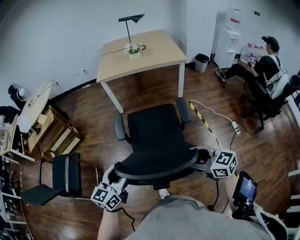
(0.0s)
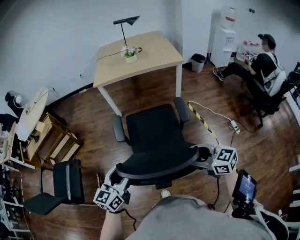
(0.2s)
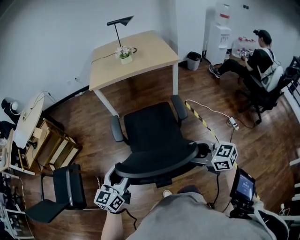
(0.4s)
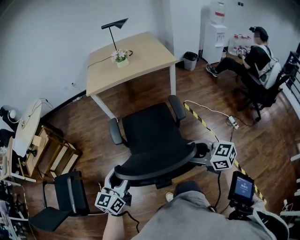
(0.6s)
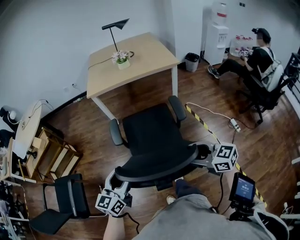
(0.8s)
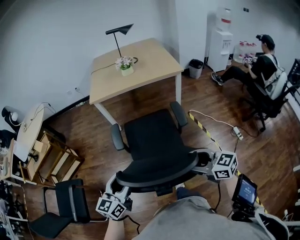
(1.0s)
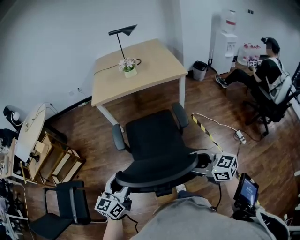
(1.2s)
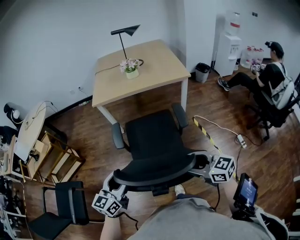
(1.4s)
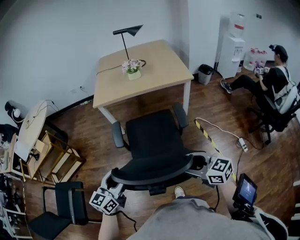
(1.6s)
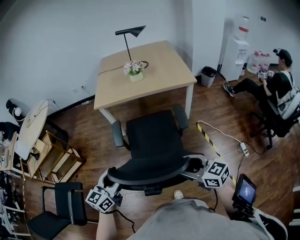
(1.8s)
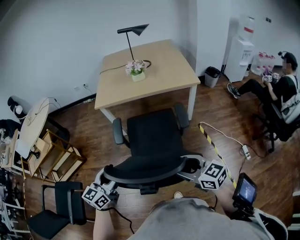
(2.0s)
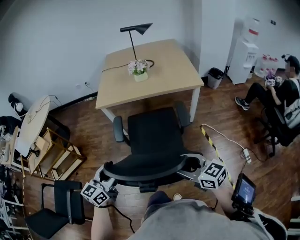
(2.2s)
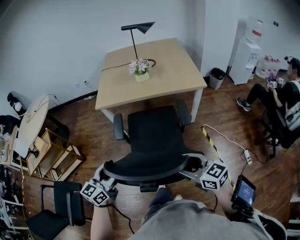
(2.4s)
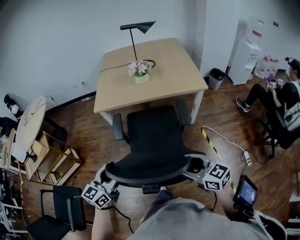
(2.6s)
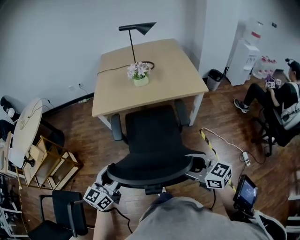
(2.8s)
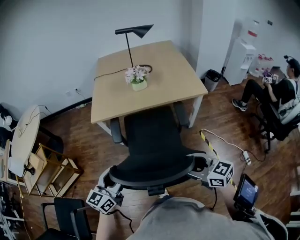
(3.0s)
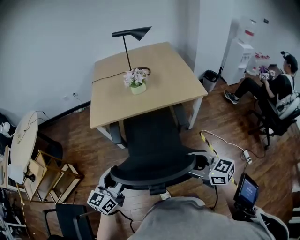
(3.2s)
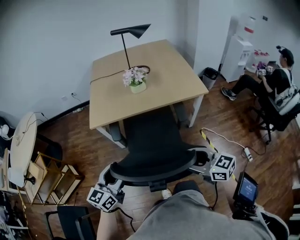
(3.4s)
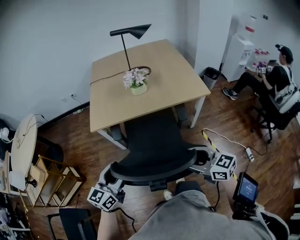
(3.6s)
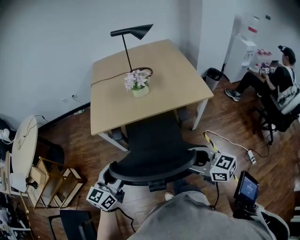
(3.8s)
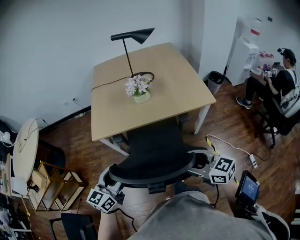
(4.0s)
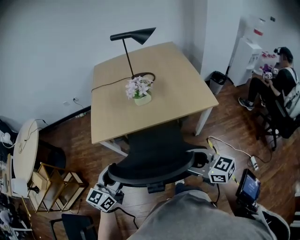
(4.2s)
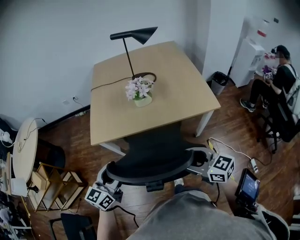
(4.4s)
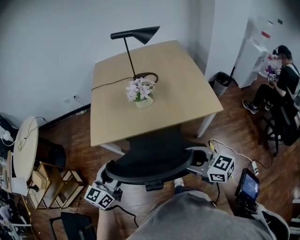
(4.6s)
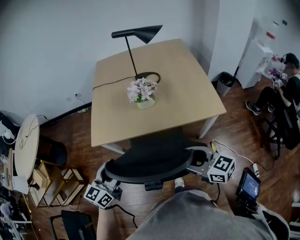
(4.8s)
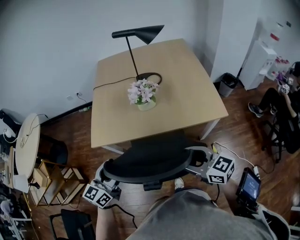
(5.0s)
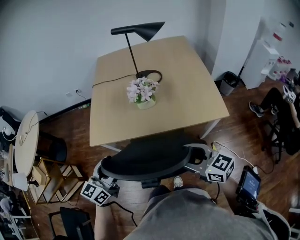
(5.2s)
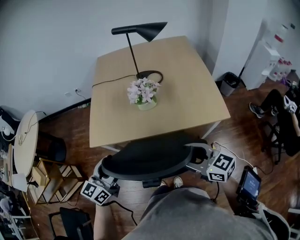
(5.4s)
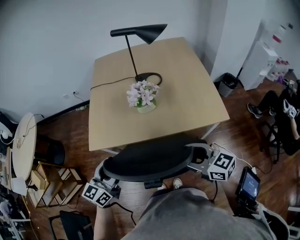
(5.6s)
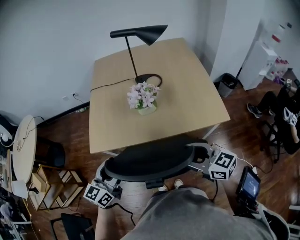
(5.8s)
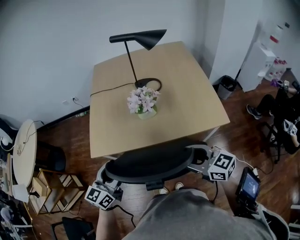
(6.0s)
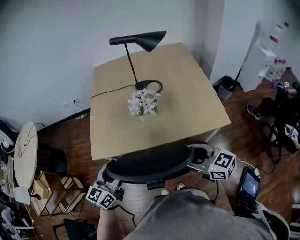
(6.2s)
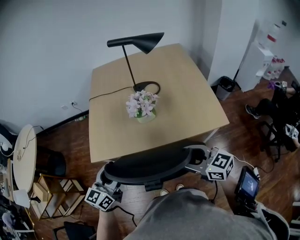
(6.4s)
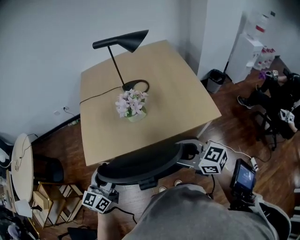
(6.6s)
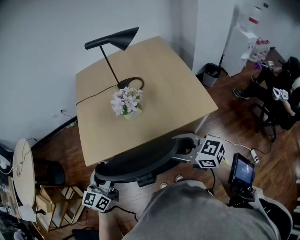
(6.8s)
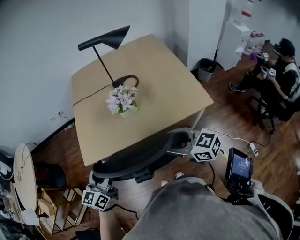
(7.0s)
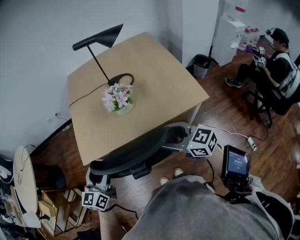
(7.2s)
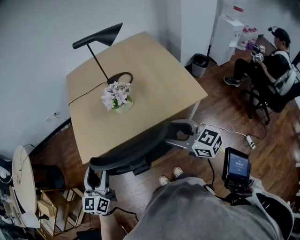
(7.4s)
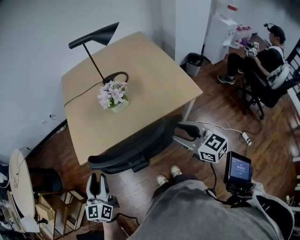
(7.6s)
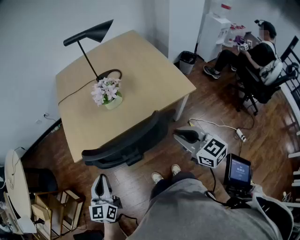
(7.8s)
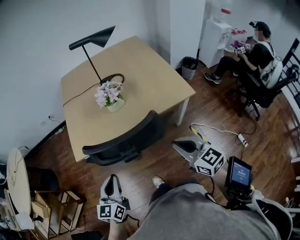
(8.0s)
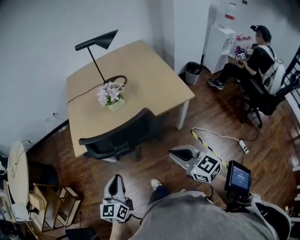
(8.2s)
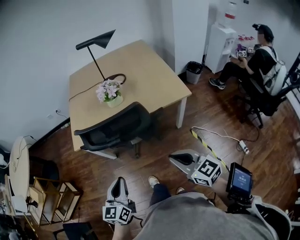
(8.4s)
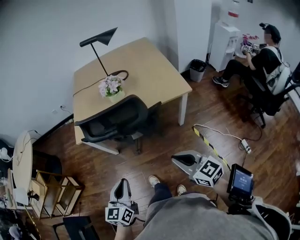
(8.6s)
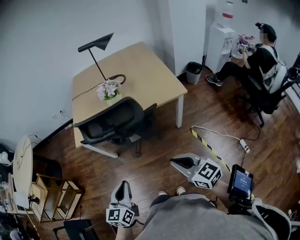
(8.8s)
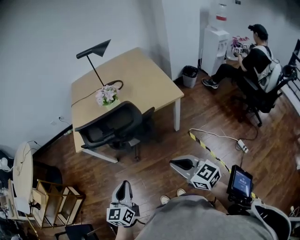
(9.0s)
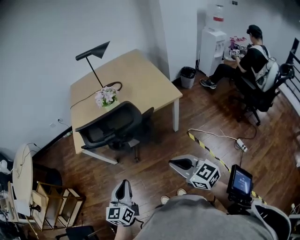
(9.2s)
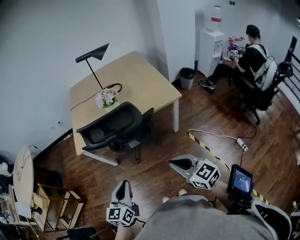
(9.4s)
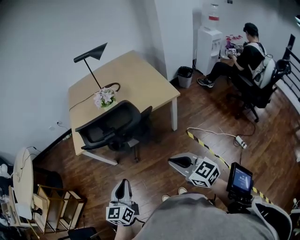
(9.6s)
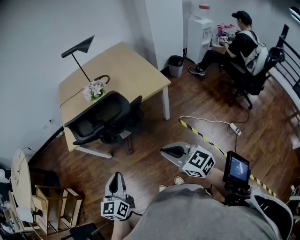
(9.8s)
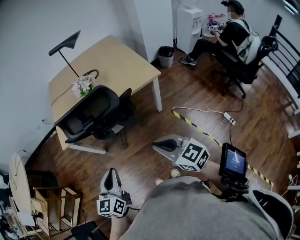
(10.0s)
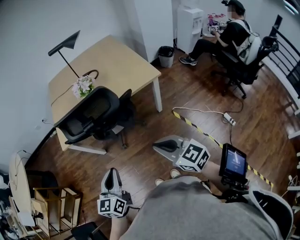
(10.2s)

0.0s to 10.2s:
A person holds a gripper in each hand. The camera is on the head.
0.0s to 1.4s: Both grippers travel together forward, approximately 20 cm.
1.4s to 3.0s: Both grippers travel together forward, approximately 25 cm.
3.0s to 4.4s: The grippers both shift forward by approximately 20 cm.
4.4s to 5.8s: Both grippers travel together forward, approximately 10 cm.
5.8s to 7.2s: The grippers make only small movements.
7.2s to 8.8s: Both grippers move backward, roughly 30 cm. The left gripper closes. The right gripper closes.
8.8s to 10.2s: The grippers make only small movements.

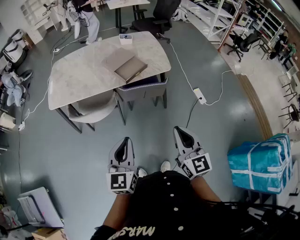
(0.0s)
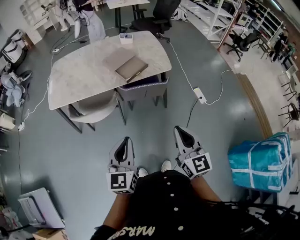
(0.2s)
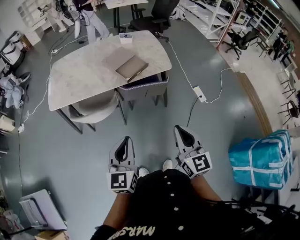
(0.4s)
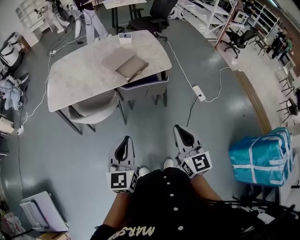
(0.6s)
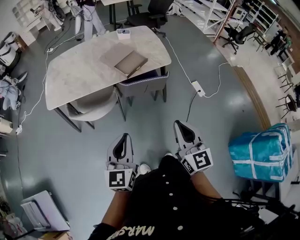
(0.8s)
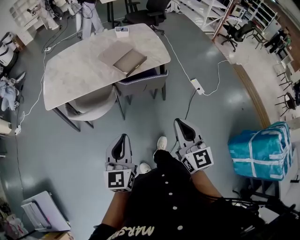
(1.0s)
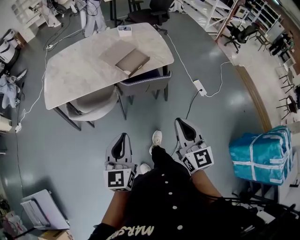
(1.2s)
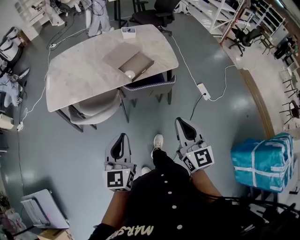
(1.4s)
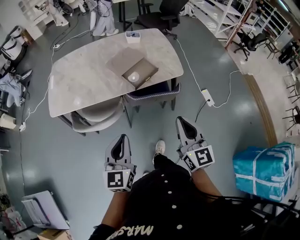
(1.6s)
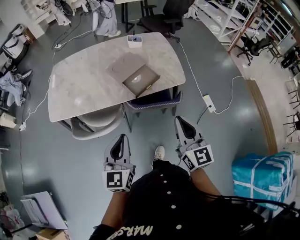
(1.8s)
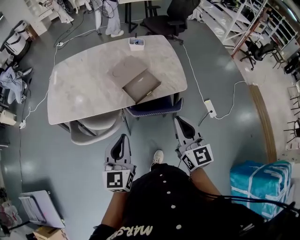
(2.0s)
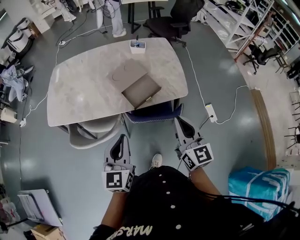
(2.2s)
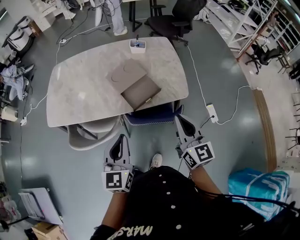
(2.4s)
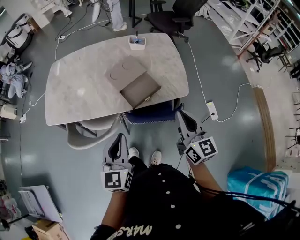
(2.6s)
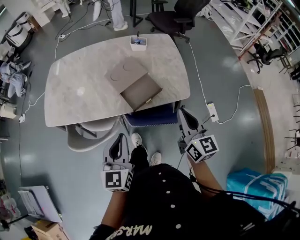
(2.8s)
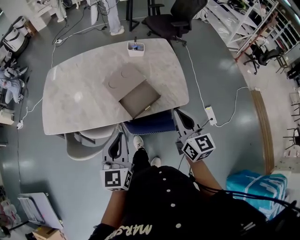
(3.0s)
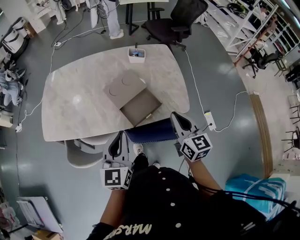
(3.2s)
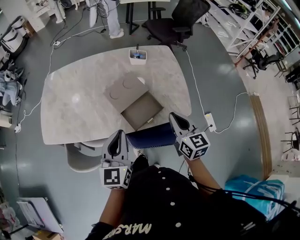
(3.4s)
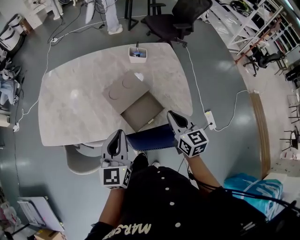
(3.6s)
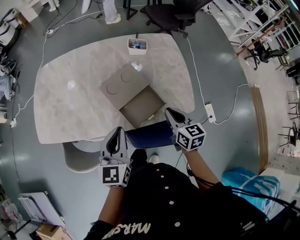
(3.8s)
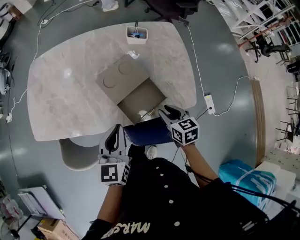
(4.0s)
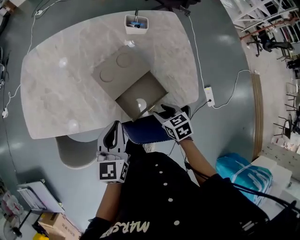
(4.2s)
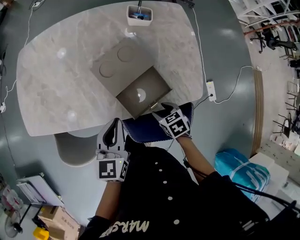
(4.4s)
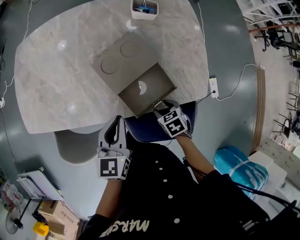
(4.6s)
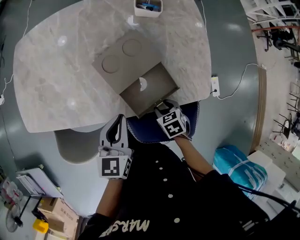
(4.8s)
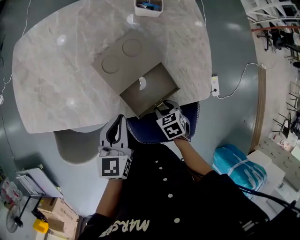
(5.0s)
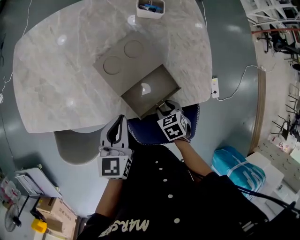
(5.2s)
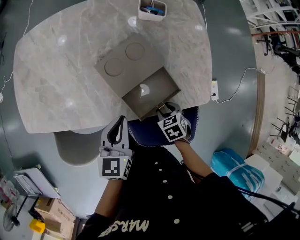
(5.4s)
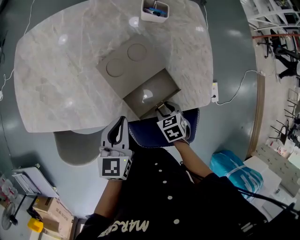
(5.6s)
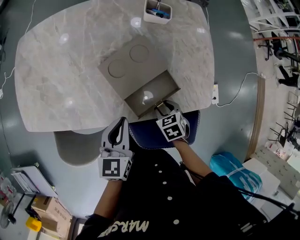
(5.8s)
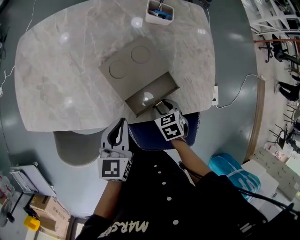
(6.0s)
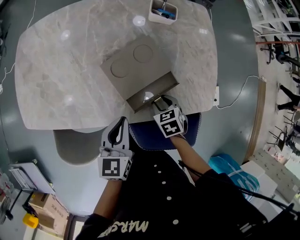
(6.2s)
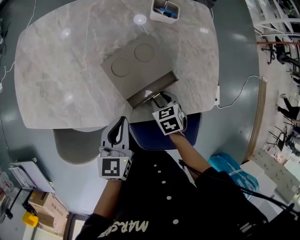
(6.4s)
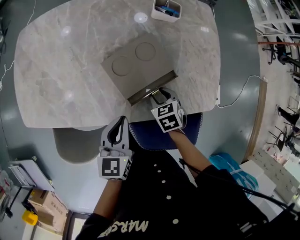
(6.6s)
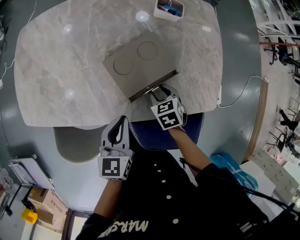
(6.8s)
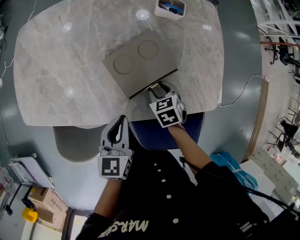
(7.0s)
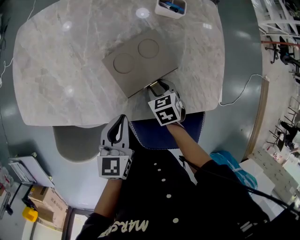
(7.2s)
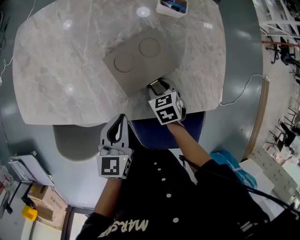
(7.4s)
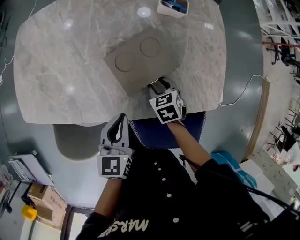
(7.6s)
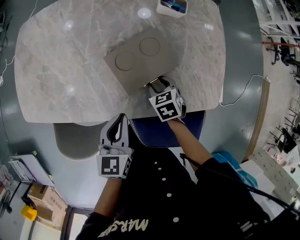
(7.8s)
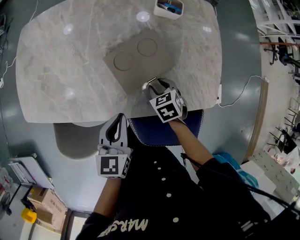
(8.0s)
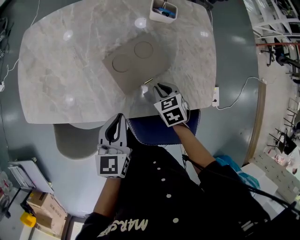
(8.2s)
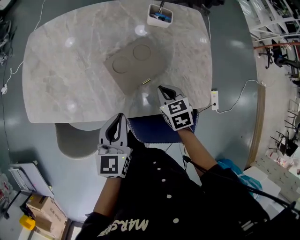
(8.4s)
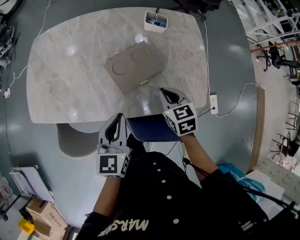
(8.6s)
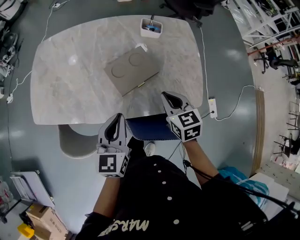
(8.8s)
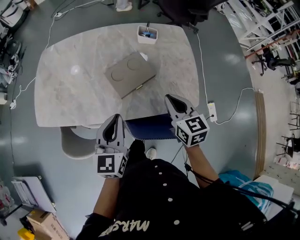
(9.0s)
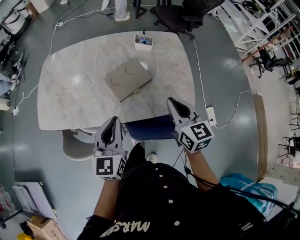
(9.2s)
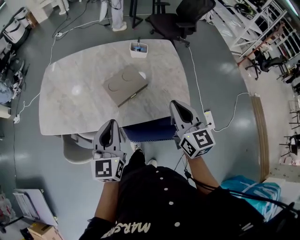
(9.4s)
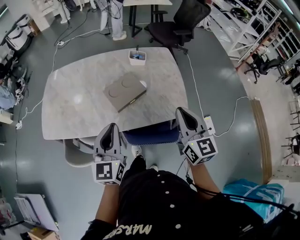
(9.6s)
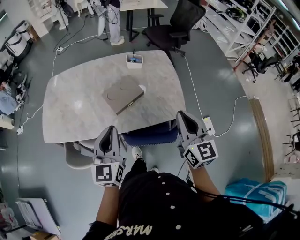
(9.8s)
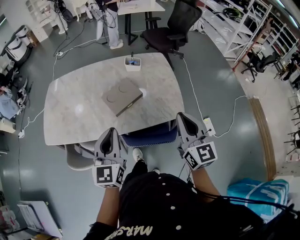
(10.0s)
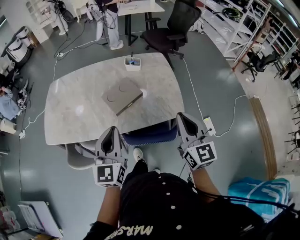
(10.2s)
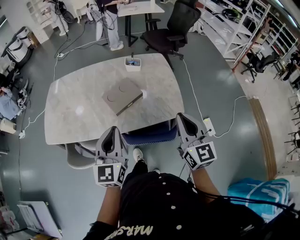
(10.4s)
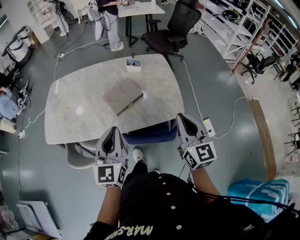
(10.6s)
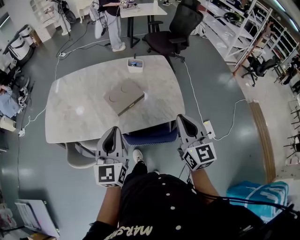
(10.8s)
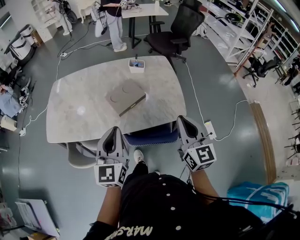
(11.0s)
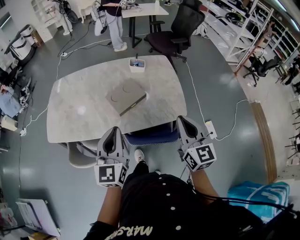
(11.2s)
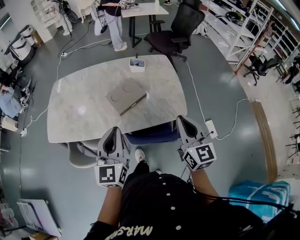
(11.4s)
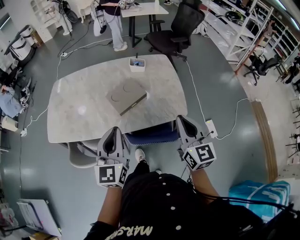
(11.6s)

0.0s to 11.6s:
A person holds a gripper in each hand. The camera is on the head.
0.0s to 1.4s: The left gripper shifts approximately 10 cm forward and to the left, while the right gripper moves forward, about 10 cm.
1.4s to 2.8s: The grippers both shift forward by roughly 25 cm.
2.8s to 4.4s: The right gripper travels downward and forward by about 35 cm, points its fingers about 60 degrees further downward, and opens up. Meanwhile the left gripper travels forward and downward by approximately 25 cm.
4.4s to 5.8s: The left gripper shifts by some 5 cm. Meanwhile the right gripper shifts by about 5 cm.
5.8s to 7.2s: The right gripper heads forward, covering approximately 10 cm.
7.2s to 8.8s: The left gripper goes approximately 10 cm upward and backward. Meanwhile the right gripper moves upward and backward, roughly 20 cm, changes its angle by some 30 degrees, and closes its fingers.
8.8s to 10.2s: The left gripper heads upward and backward, covering roughly 15 cm; the right gripper heads upward, backward and to the right, covering some 30 cm, and tips its fingers upward by approximately 30 degrees.
10.2s to 11.6s: The grippers make only small movements.

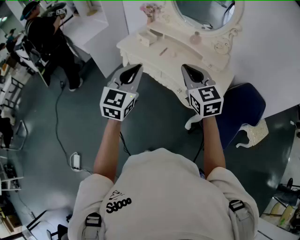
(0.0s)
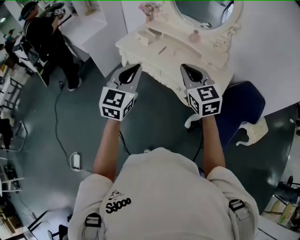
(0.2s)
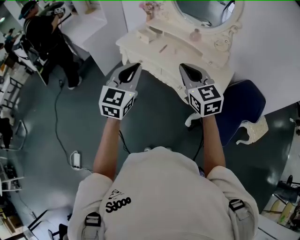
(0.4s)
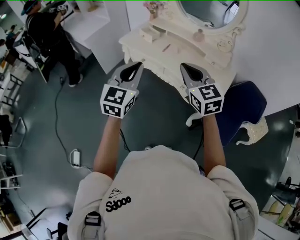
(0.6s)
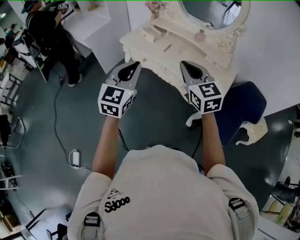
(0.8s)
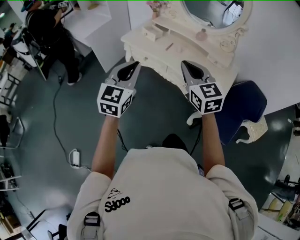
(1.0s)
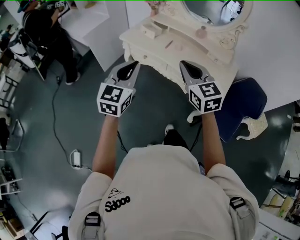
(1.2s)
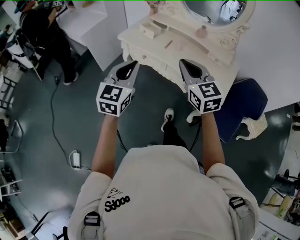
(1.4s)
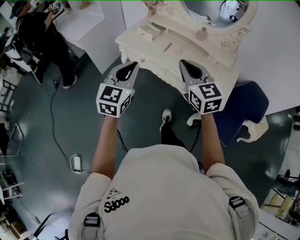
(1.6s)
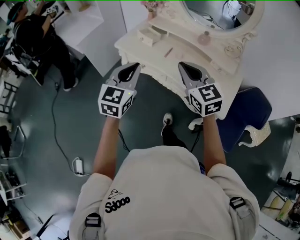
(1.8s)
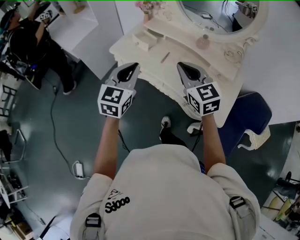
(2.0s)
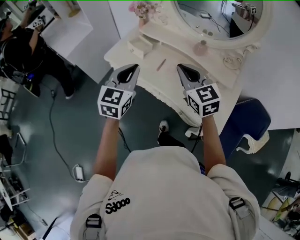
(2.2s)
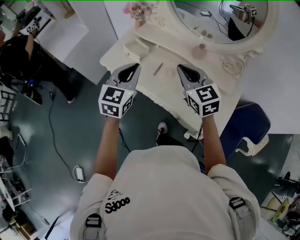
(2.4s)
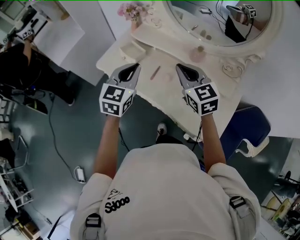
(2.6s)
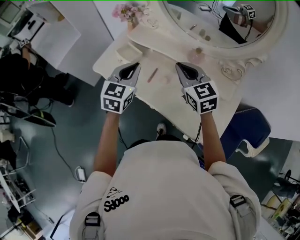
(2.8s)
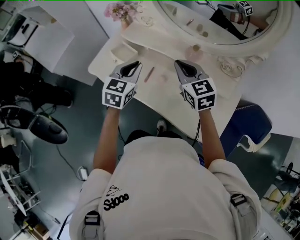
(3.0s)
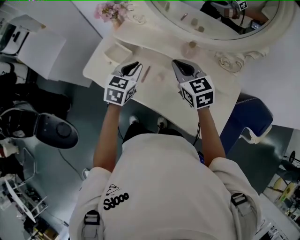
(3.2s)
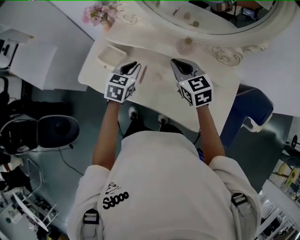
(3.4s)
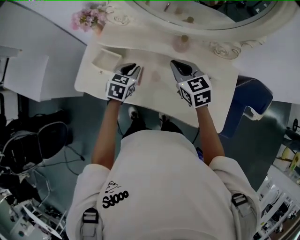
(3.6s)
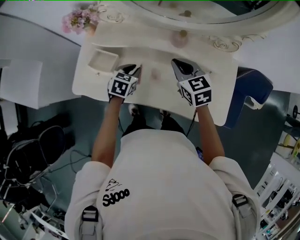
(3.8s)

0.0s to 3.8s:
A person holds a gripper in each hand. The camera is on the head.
0.0s to 1.2s: Both grippers travel together to the left, about 10 cm.
1.2s to 2.6s: The grippers both shift forward by approximately 35 cm.
2.6s to 3.8s: The left gripper goes roughly 25 cm downward, and changes its angle by about 40 degrees; the right gripper heads downward, covering roughly 10 cm, and rotates about 30 degrees.
